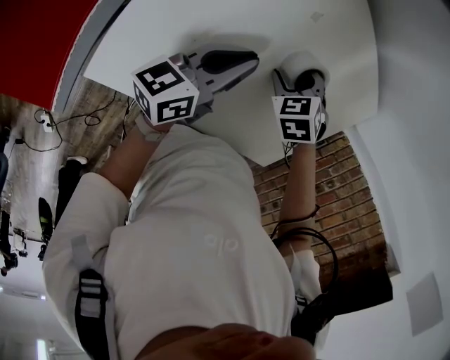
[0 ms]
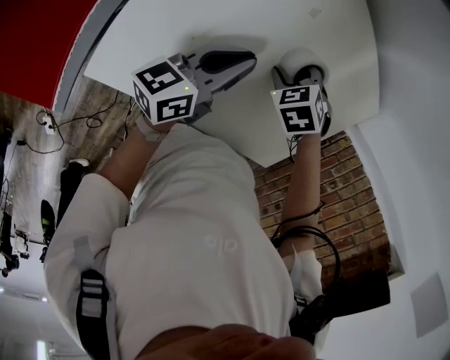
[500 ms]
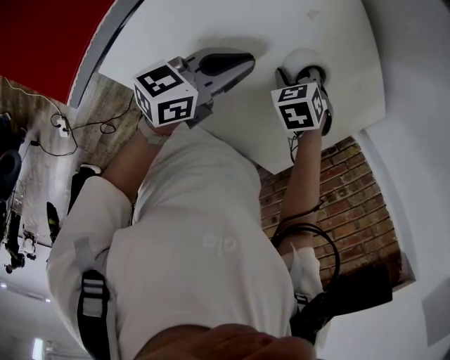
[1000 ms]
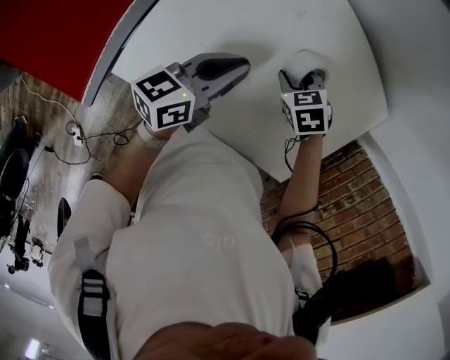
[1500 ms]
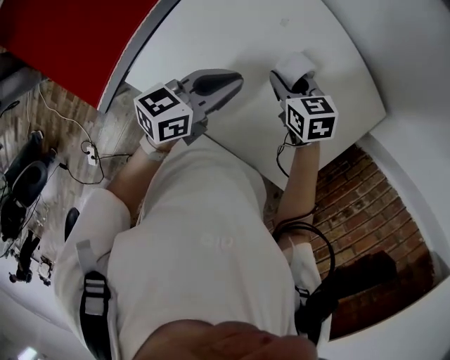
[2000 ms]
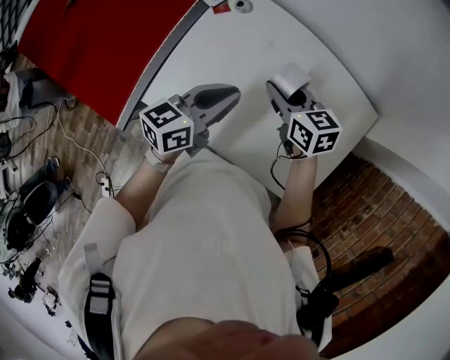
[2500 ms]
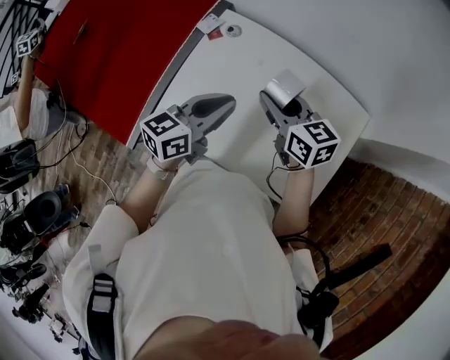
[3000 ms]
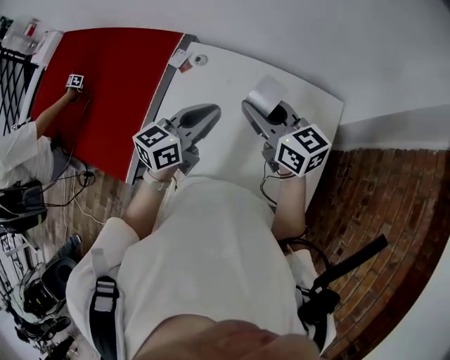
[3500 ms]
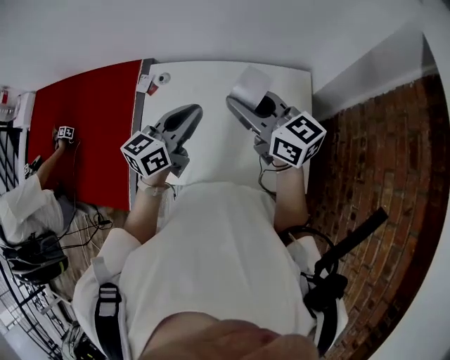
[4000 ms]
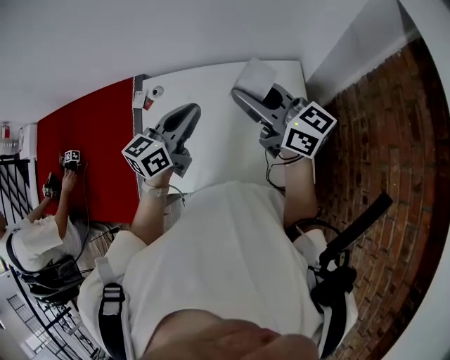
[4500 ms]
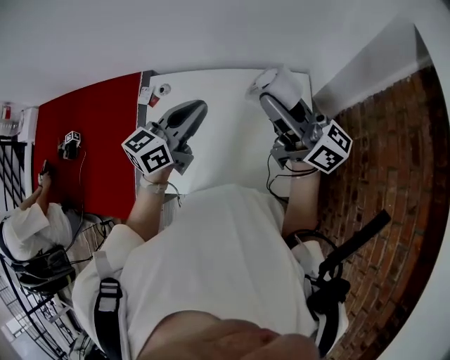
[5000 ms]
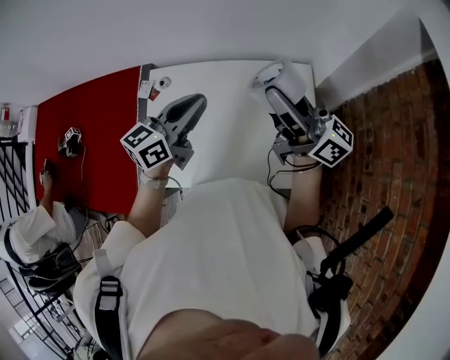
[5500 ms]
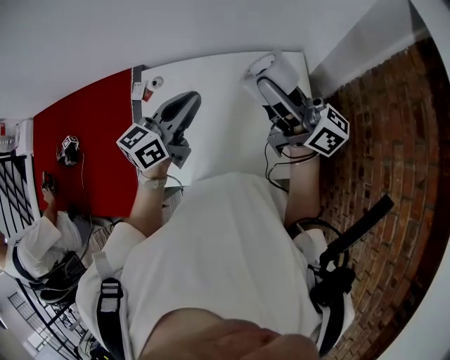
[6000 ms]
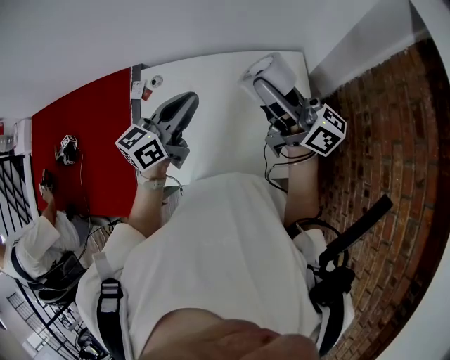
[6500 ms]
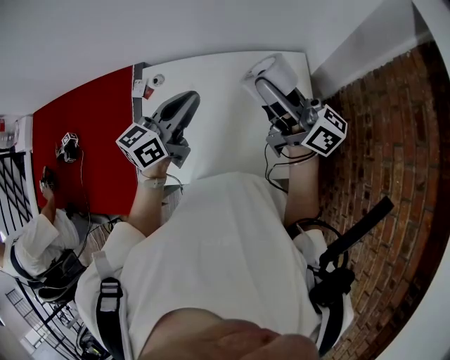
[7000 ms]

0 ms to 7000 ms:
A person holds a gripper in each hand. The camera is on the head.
0 ms to 2000 ms: The two grippers go some 15 cm upward. The right gripper points its fingers about 30 degrees further upward, and closes its fingers; the left gripper swivels some 20 degrees.
2000 ms to 3500 ms: The right gripper shifts approximately 30 cm upward, and angles its fingers upward, by some 40 degrees. The left gripper moves upward, some 20 cm, and swivels roughly 20 degrees.
3500 ms to 5000 ms: The left gripper heads to the right and upward, covering about 10 cm; the right gripper goes some 20 cm to the right and upward, and changes its angle by approximately 30 degrees.
5000 ms to 7000 ms: There are only small adjustments of the grippers.

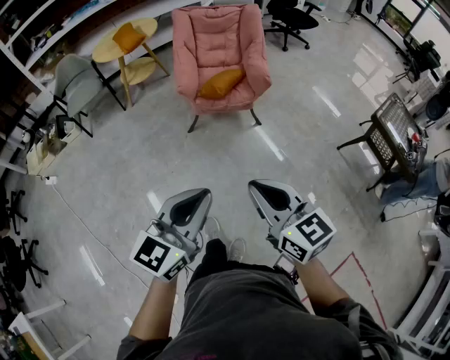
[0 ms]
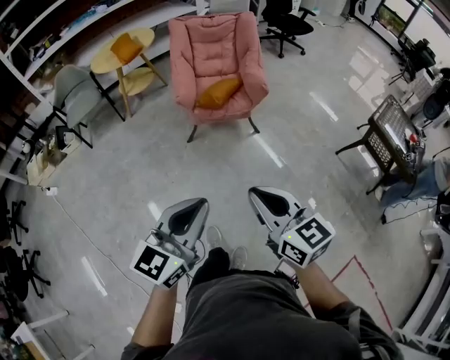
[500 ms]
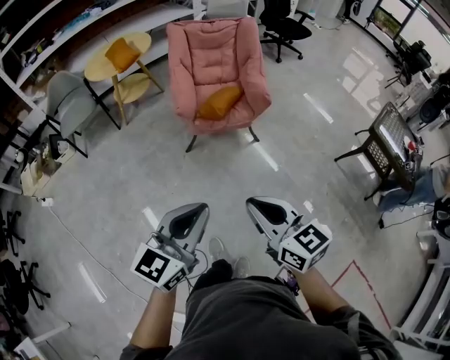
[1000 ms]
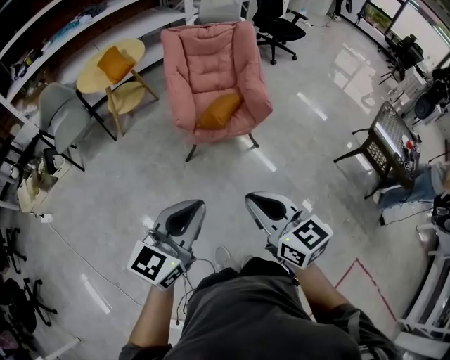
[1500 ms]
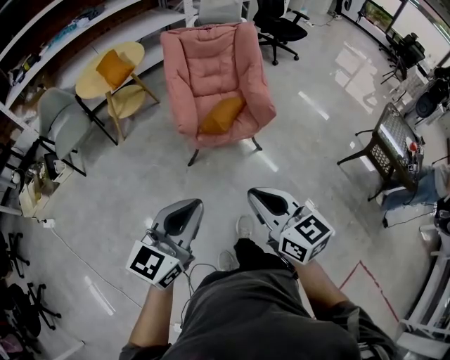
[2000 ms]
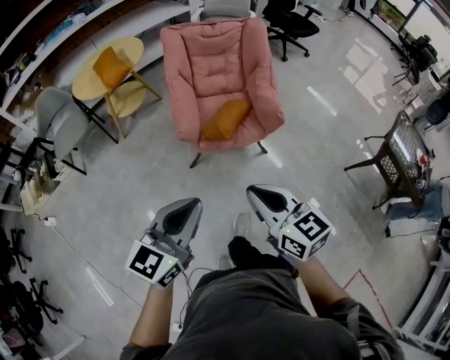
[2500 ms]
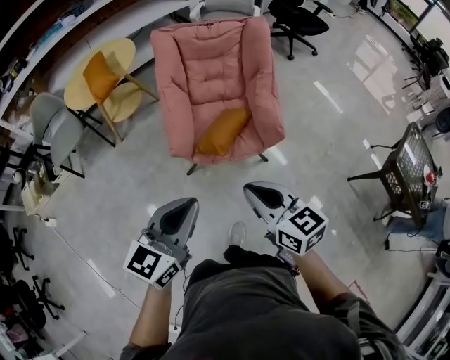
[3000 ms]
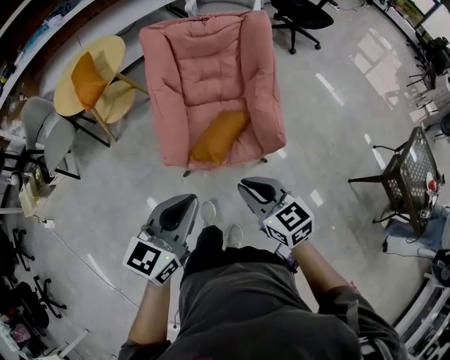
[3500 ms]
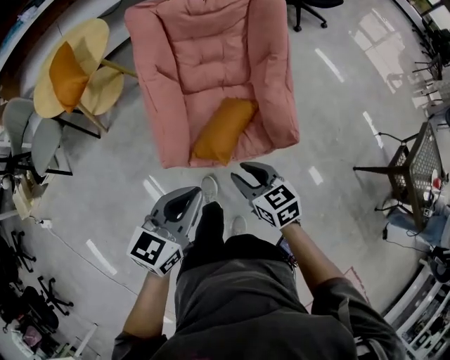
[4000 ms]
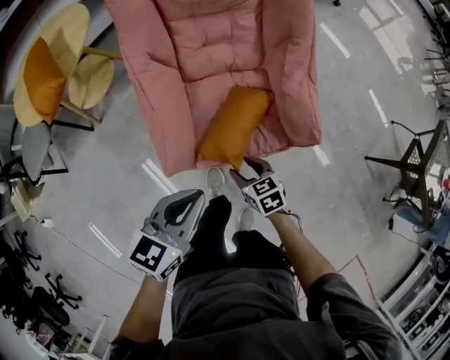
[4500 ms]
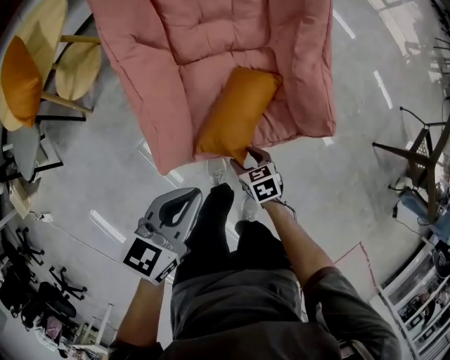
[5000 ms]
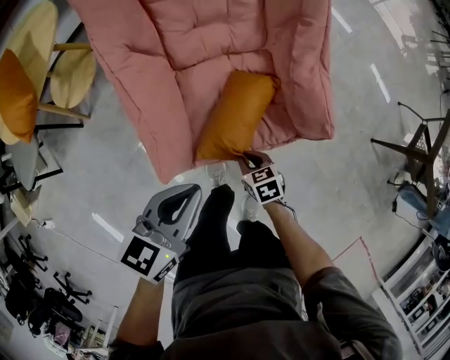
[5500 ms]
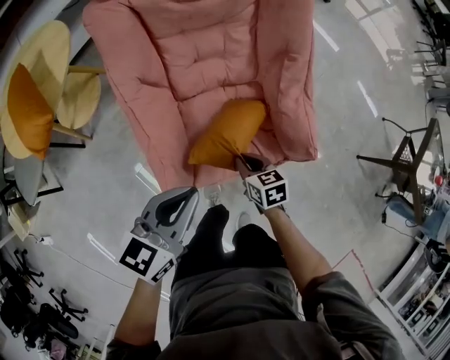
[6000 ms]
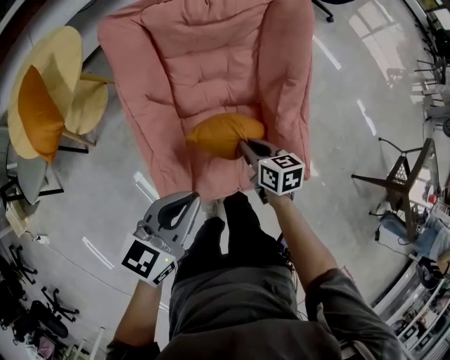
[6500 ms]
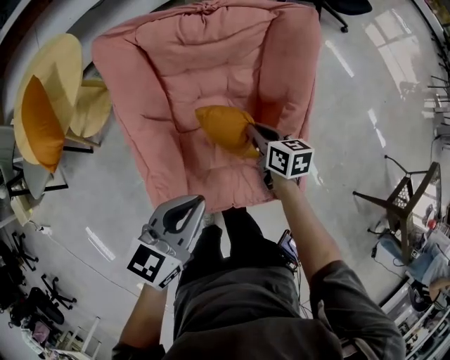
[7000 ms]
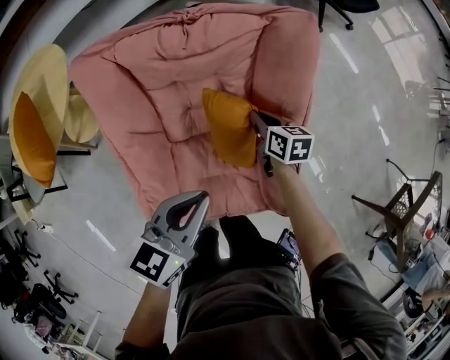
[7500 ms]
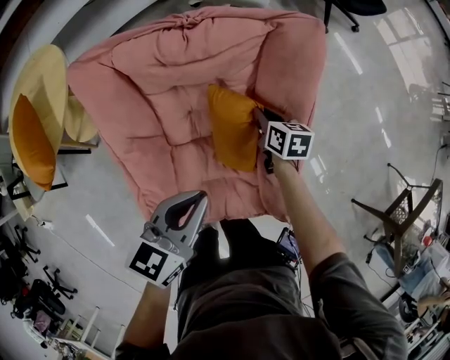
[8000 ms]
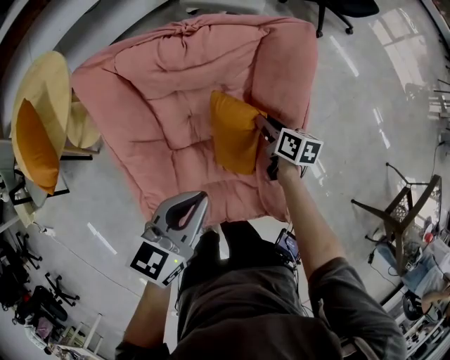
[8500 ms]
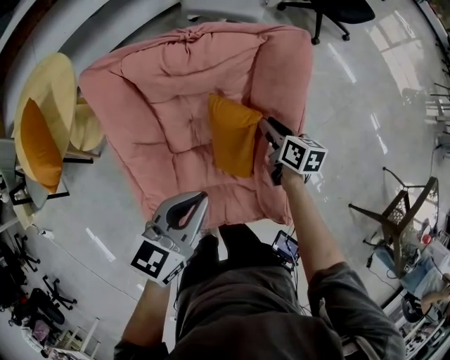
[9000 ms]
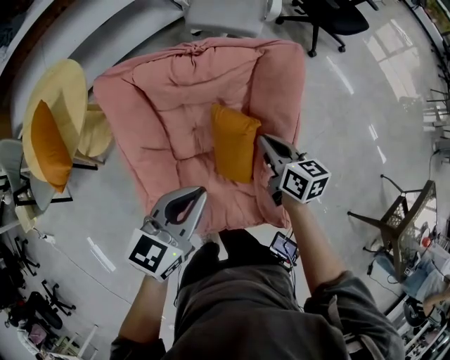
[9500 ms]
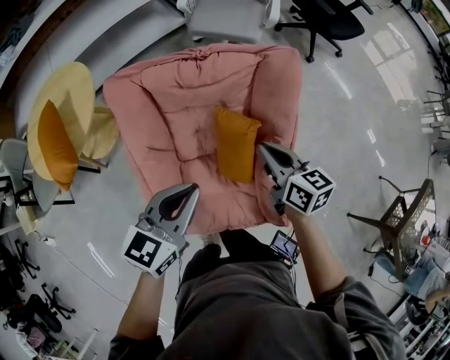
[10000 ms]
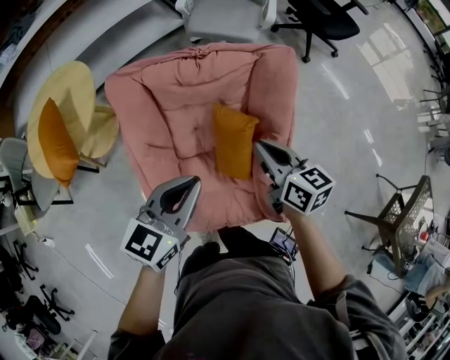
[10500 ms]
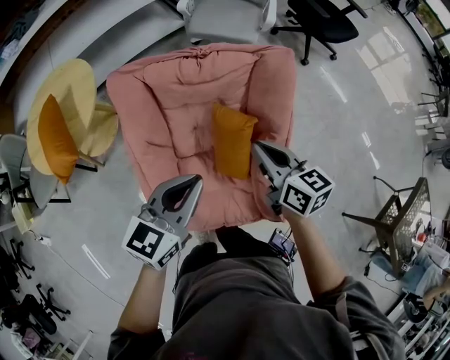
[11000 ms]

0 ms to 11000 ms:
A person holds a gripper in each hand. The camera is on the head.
0 ms to 2000 ms: Both grippers move forward and to the left, some 25 cm.
2000 ms to 3500 ms: The two grippers go about 35 cm forward.
3500 ms to 5500 ms: The grippers both shift downward and forward by approximately 40 cm. The left gripper rotates about 20 degrees. Meanwhile the right gripper tilts its fingers some 30 degrees downward, and opens and closes again.
5500 ms to 7500 ms: The right gripper shifts about 40 cm forward, and turns by some 20 degrees. The left gripper is displaced forward by approximately 25 cm.
7500 ms to 9000 ms: The right gripper ends up about 5 cm from where it was, and opens up.
9000 ms to 11000 ms: The right gripper travels upward and backward by roughly 25 cm, rotates approximately 20 degrees, and closes its fingers. Meanwhile the left gripper shifts some 10 cm upward.

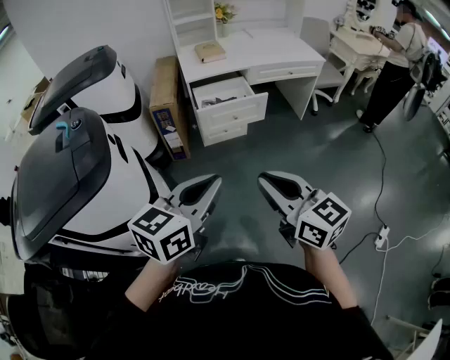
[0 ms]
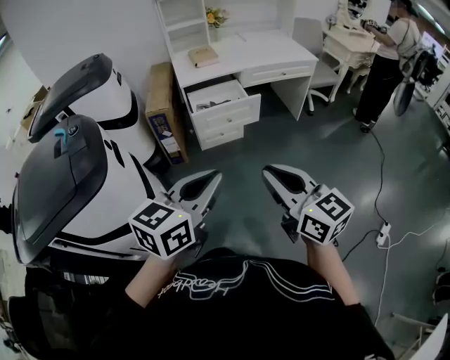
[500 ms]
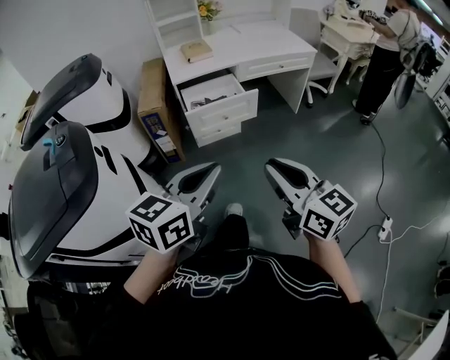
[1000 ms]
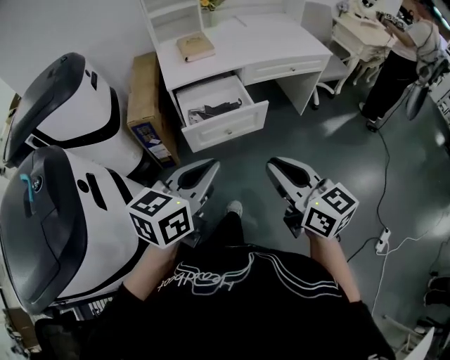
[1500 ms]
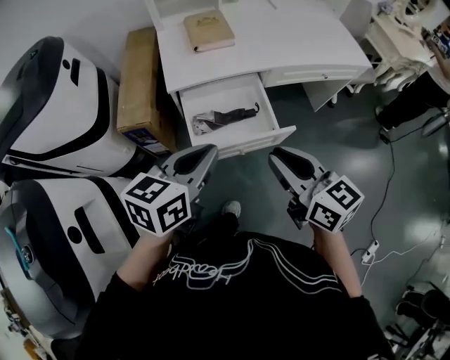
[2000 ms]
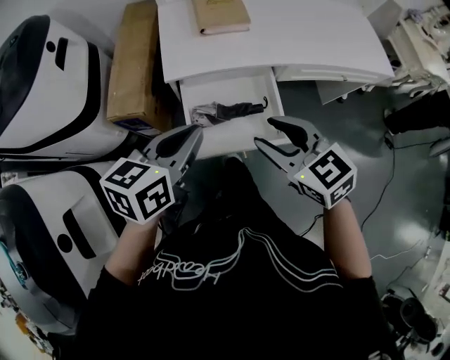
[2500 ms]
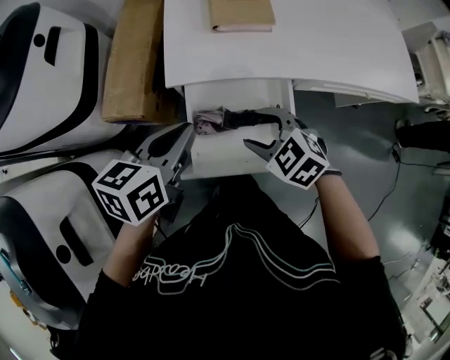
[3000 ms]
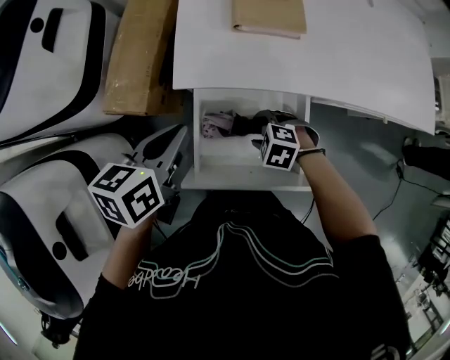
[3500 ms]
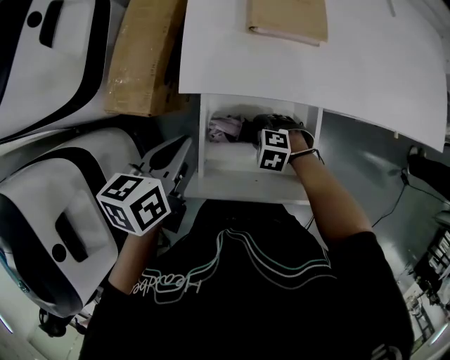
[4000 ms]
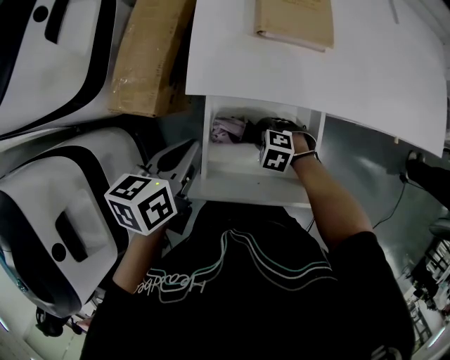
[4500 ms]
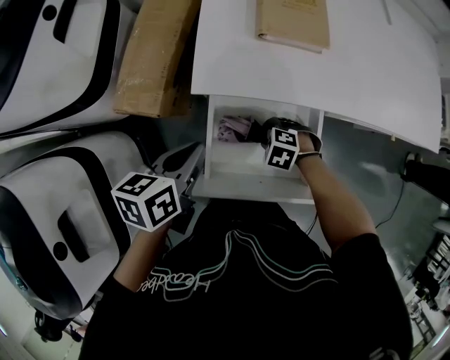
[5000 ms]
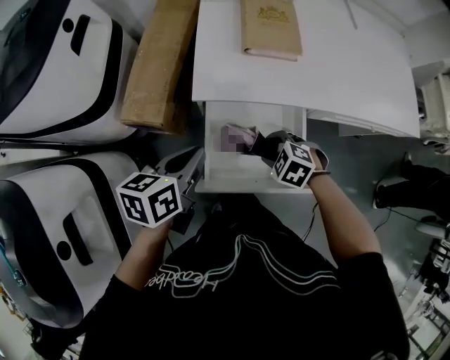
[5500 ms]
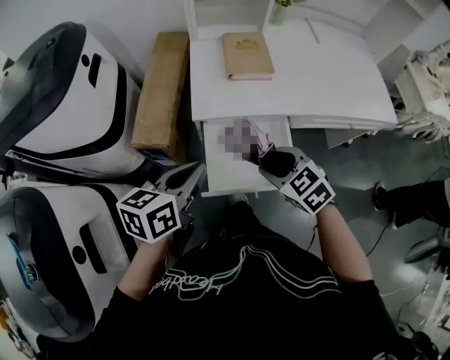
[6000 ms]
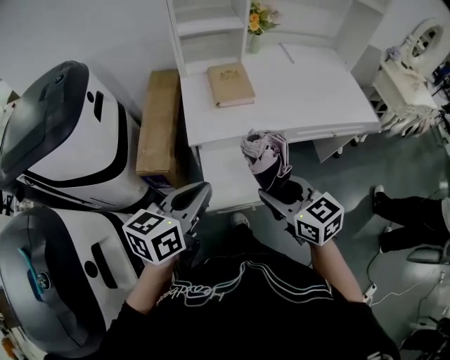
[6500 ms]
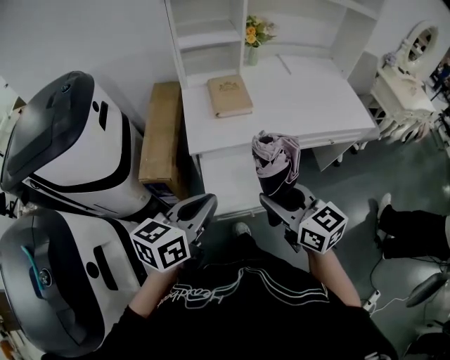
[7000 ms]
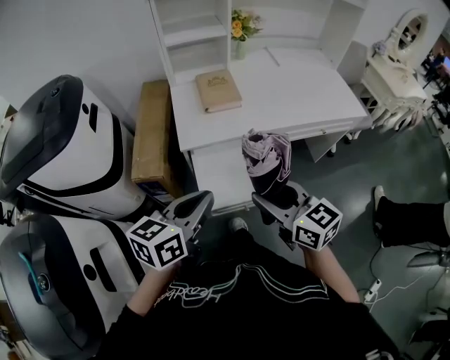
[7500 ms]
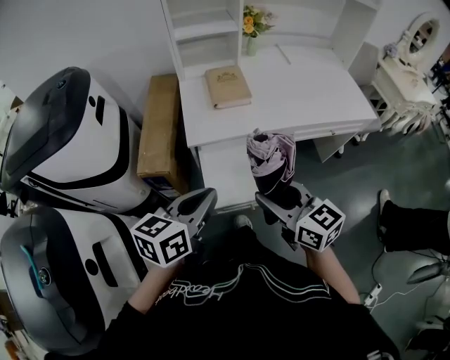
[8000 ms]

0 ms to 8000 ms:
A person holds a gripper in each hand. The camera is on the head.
0 ms to 2000 ms: The pair of grippers is taken forward, roughly 50 cm.
2000 ms to 4000 ms: The right gripper shifts roughly 40 cm downward, angles its fingers downward, by about 60 degrees, and opens, while the left gripper ends up some 30 cm from where it was, and changes its angle by roughly 40 degrees.
4000 ms to 6000 ms: The right gripper travels upward by some 30 cm, and turns by roughly 50 degrees, while the left gripper shifts roughly 15 cm upward, and changes its angle by some 20 degrees.
6000 ms to 8000 ms: The left gripper goes some 10 cm backward and upward; the right gripper shifts some 15 cm upward and backward, and tips its fingers upward by roughly 30 degrees.
